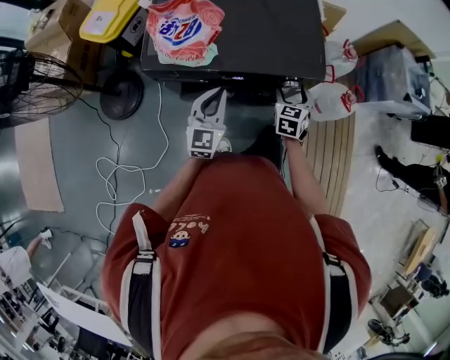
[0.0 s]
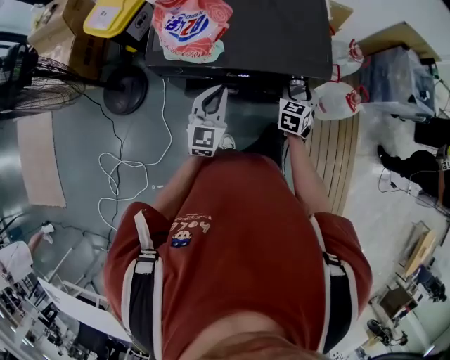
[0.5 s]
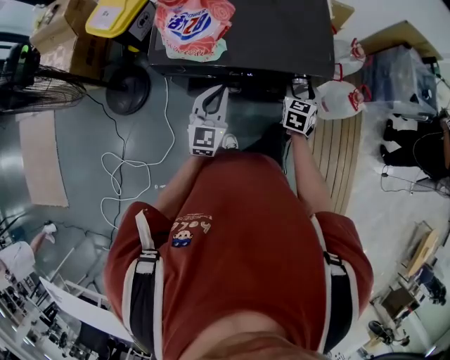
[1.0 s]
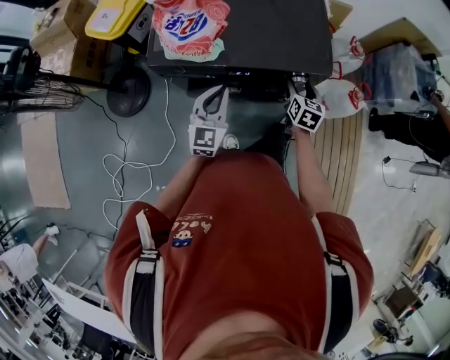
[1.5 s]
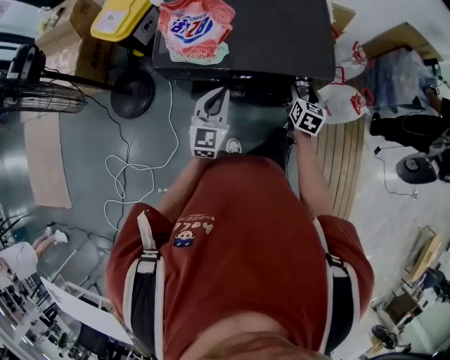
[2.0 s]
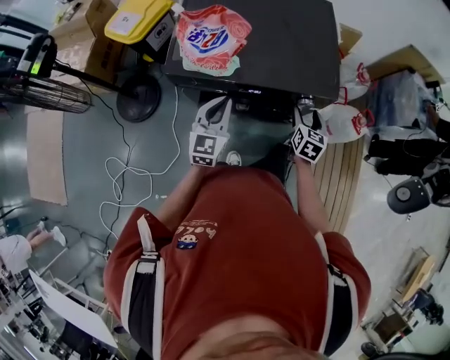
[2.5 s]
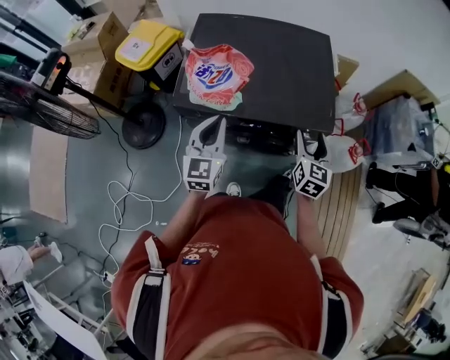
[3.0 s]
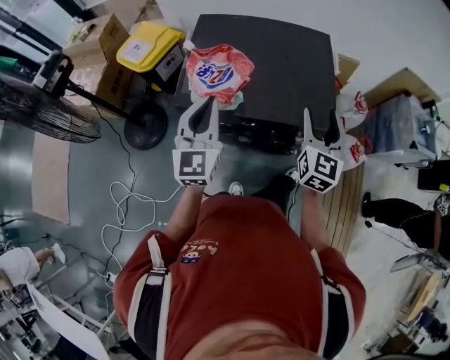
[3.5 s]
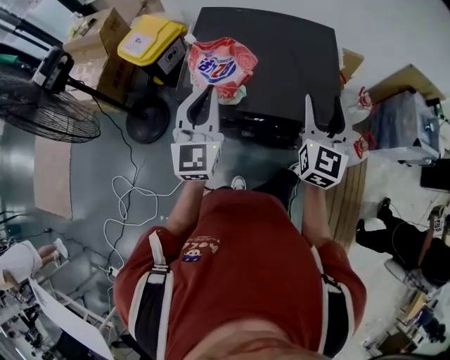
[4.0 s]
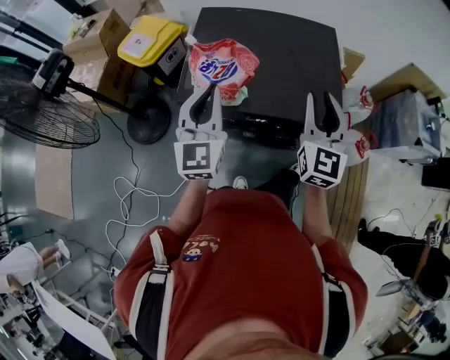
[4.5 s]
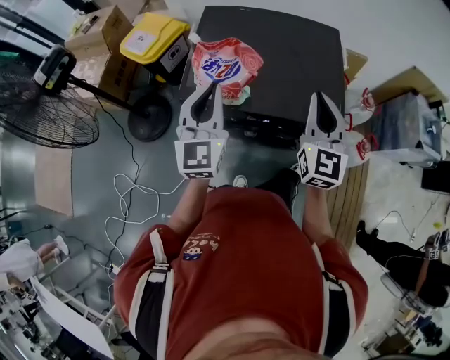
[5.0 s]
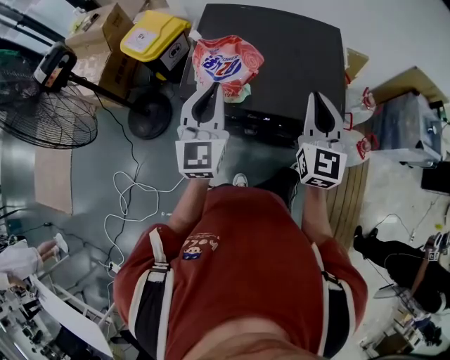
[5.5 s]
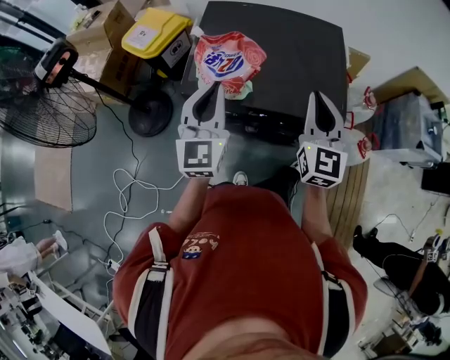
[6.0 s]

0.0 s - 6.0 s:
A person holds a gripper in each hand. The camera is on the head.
0.0 s - 2.0 s: The right gripper rotates about 20 degrees.
2.0 s - 4.0 s: The two grippers go some 25 cm upward. The right gripper angles its fingers upward, by approximately 30 degrees.
4.0 s - 6.0 s: The right gripper closes its fingers.

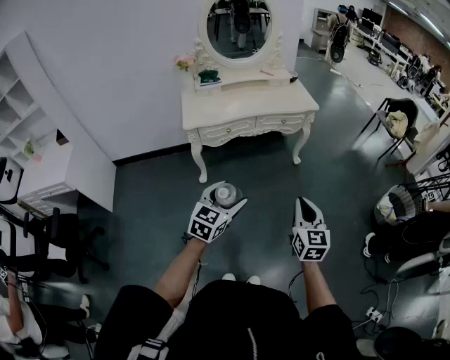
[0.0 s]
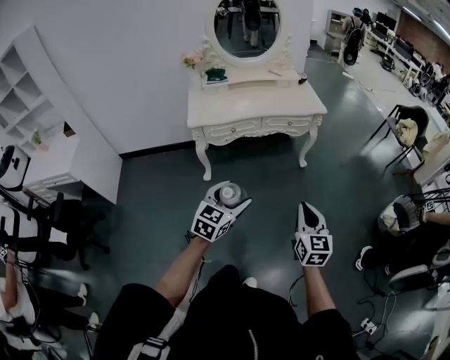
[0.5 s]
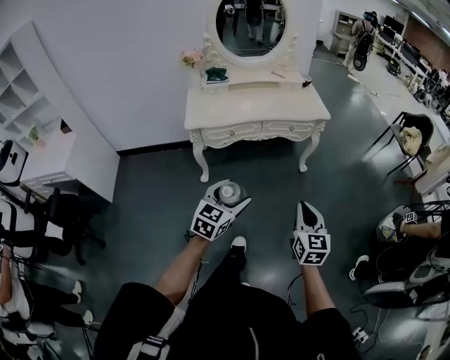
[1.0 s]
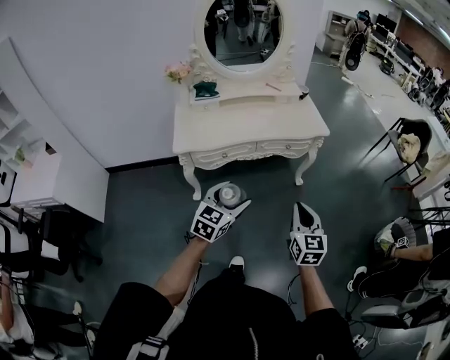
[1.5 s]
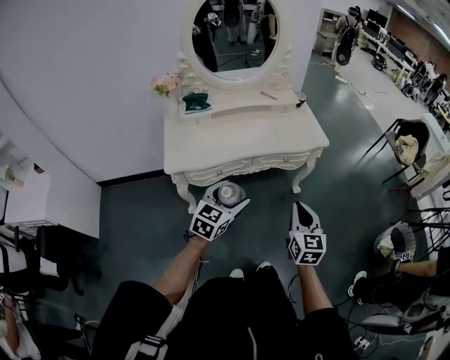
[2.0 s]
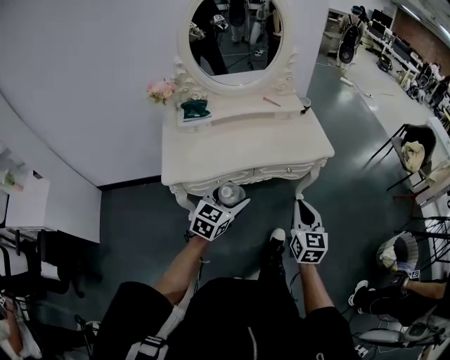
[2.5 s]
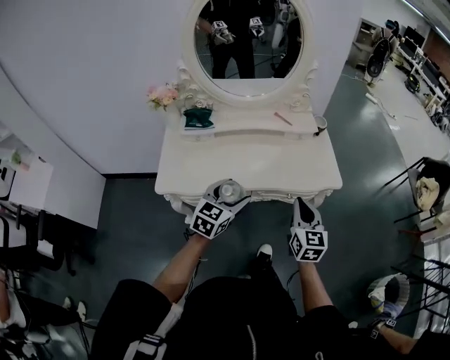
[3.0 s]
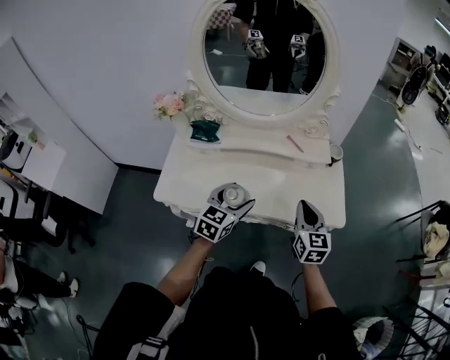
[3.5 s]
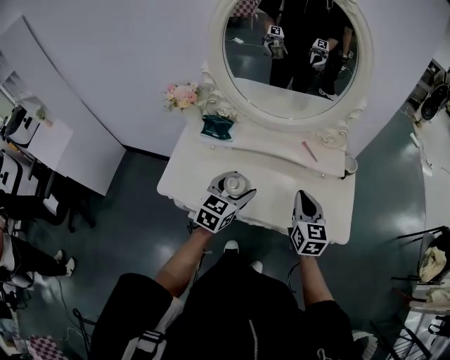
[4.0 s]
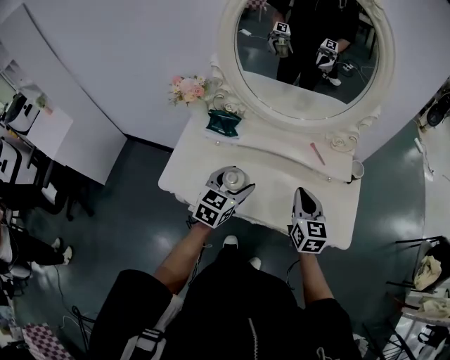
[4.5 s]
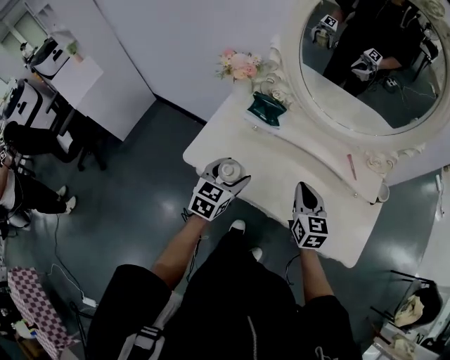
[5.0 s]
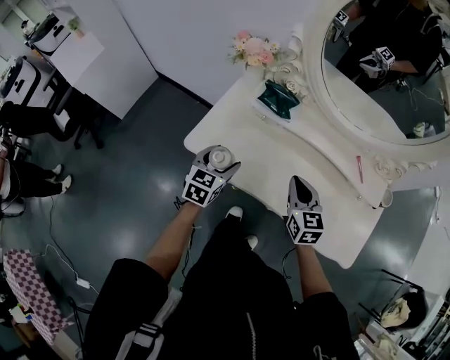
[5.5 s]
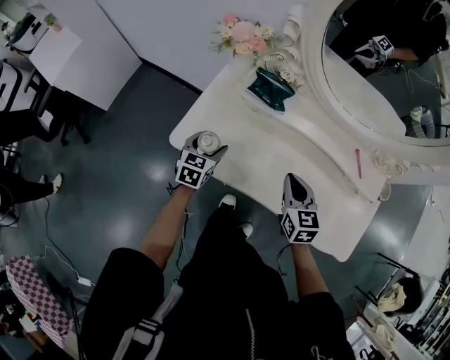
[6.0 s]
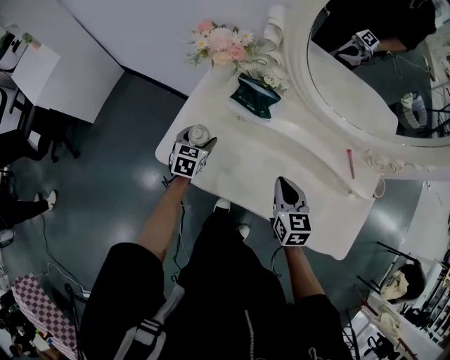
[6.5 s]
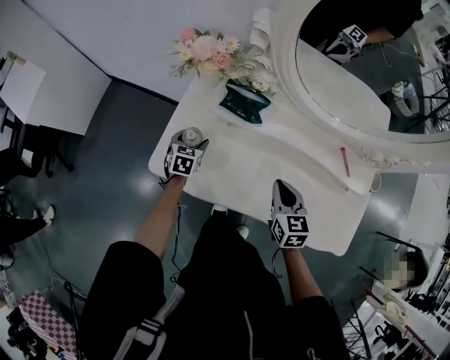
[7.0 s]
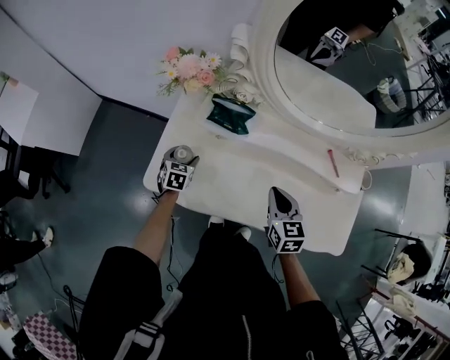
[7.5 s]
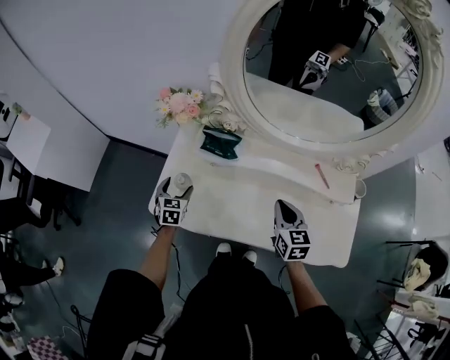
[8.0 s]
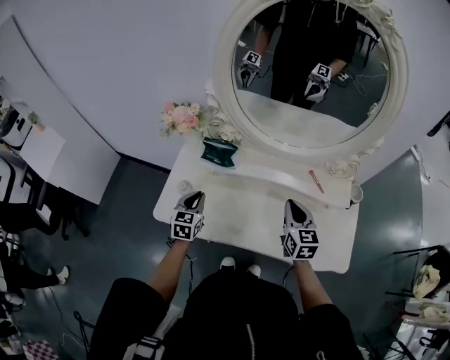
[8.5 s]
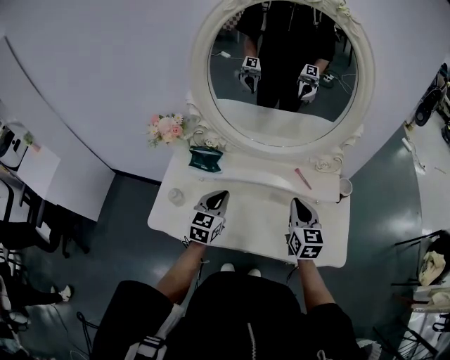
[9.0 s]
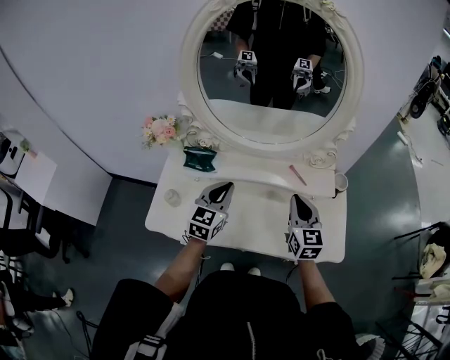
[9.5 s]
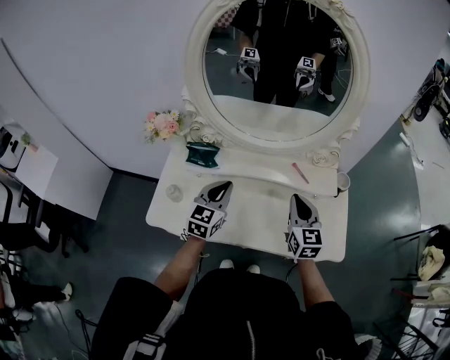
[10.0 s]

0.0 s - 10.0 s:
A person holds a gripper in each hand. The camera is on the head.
0.0 s - 2.0 s: Both grippers move forward, approximately 35 cm.
2.0 s - 4.0 s: The right gripper changes place by approximately 50 cm, and turns by approximately 30 degrees; the left gripper shifts by roughly 40 cm, and turns by roughly 30 degrees.
4.0 s - 6.0 s: The left gripper goes about 30 cm to the left and downward, and turns by roughly 30 degrees, while the right gripper moves to the left, downward and forward, some 25 cm, and changes its angle by about 30 degrees.
6.0 s - 8.0 s: The left gripper goes approximately 5 cm forward, while the right gripper goes some 10 cm to the right.
8.0 s - 10.0 s: The left gripper shifts roughly 35 cm to the right and upward, changes its angle by roughly 40 degrees, and closes up; the right gripper travels to the right and upward by approximately 15 cm.

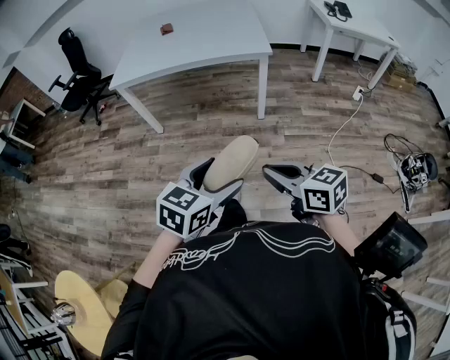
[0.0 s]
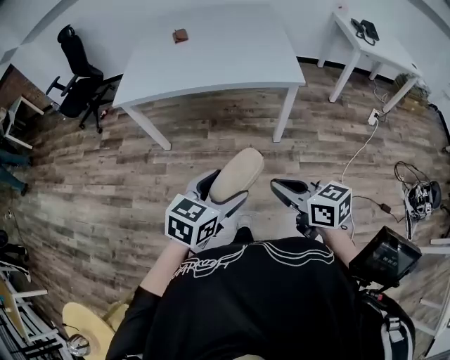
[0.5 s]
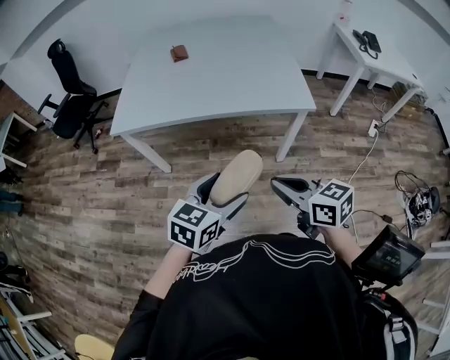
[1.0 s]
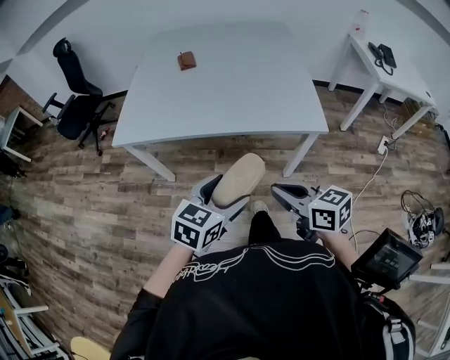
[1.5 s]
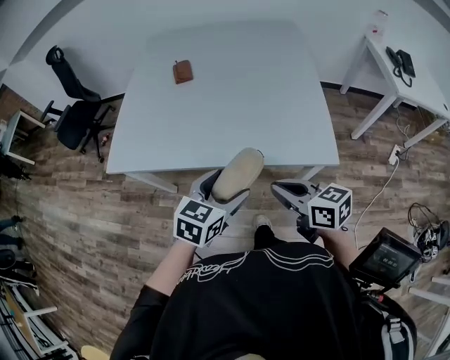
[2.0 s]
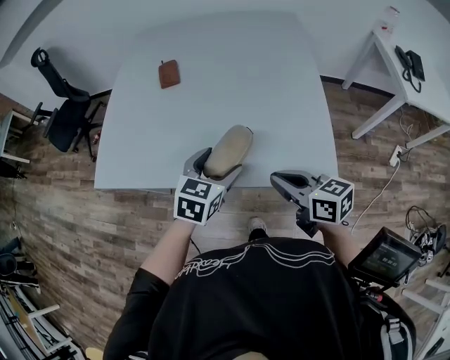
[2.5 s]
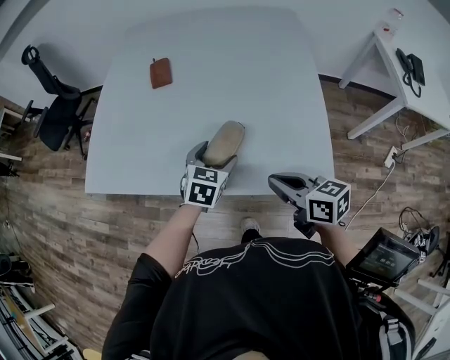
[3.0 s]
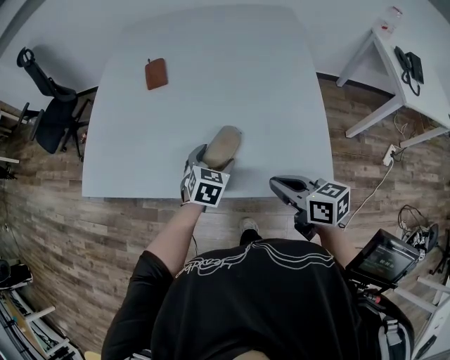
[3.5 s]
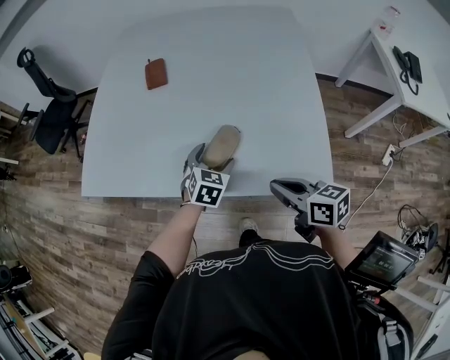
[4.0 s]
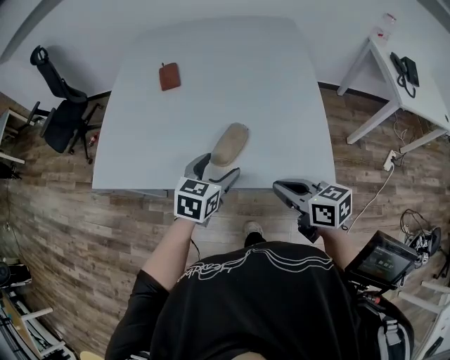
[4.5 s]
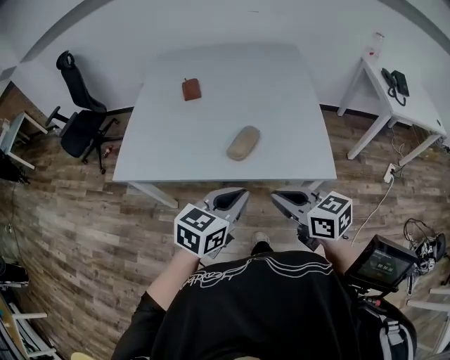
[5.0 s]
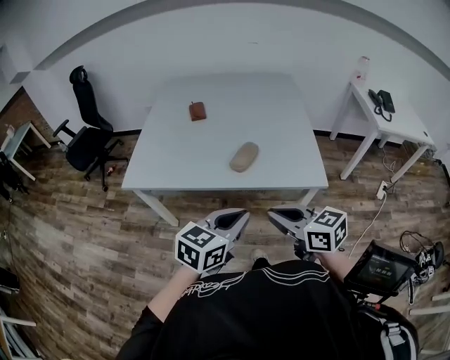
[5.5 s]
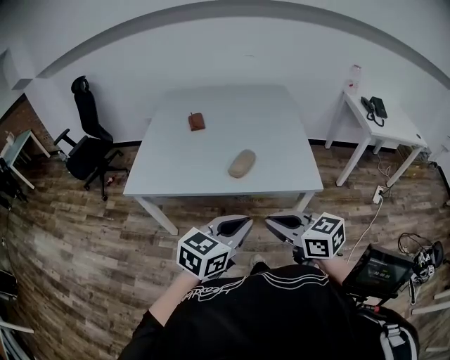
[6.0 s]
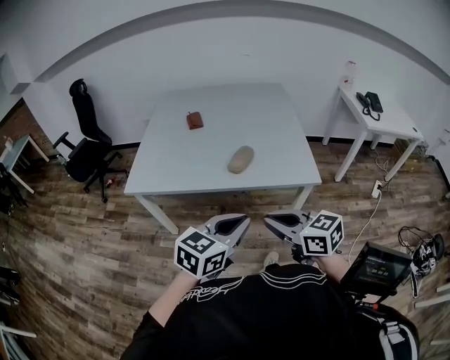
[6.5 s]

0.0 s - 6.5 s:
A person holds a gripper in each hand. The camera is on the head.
0.0 s - 2.0 s: The two grippers travel together, forward, roughly 60 cm.
2.0 s - 4.5 s: The left gripper heads forward, covering approximately 5 cm.
4.5 s - 6.5 s: The right gripper goes about 30 cm backward, upward and to the left; the left gripper heads backward and upward, covering roughly 35 cm, changes its angle by roughly 20 degrees, and closes its fingers.

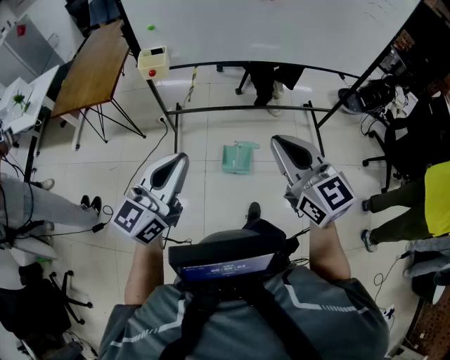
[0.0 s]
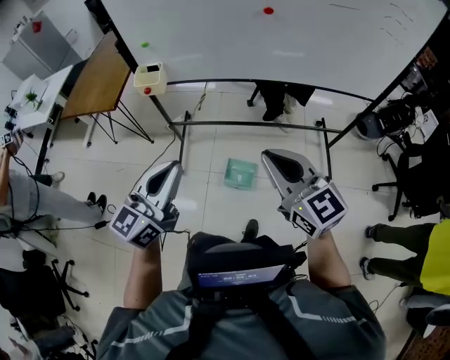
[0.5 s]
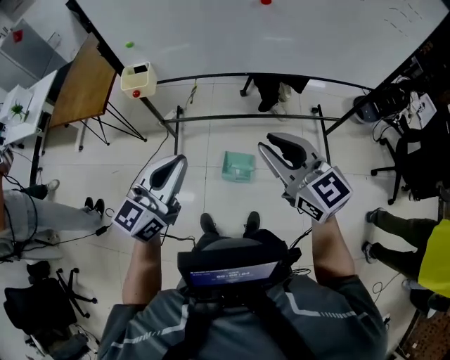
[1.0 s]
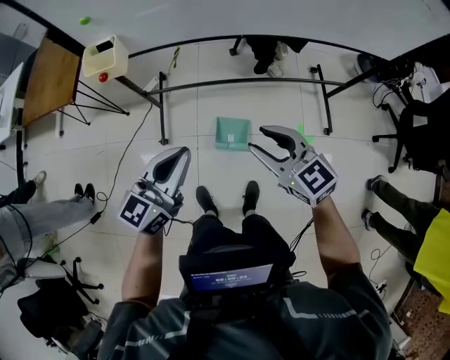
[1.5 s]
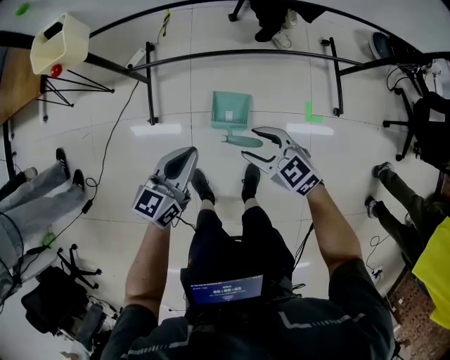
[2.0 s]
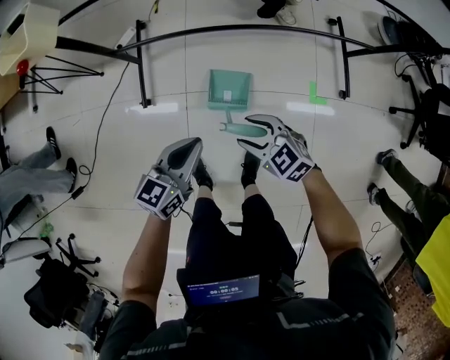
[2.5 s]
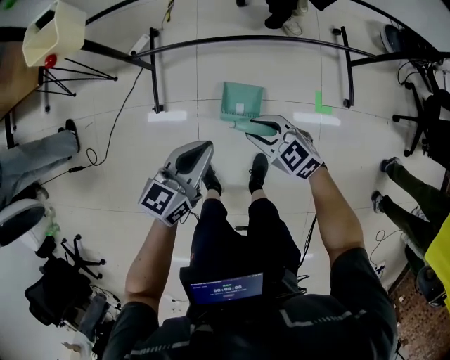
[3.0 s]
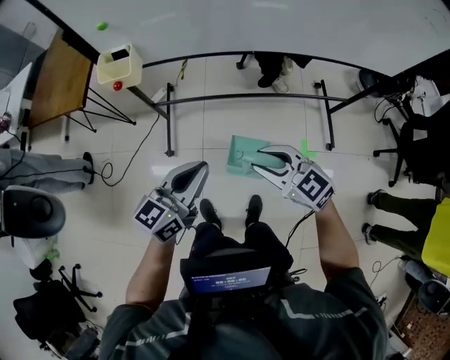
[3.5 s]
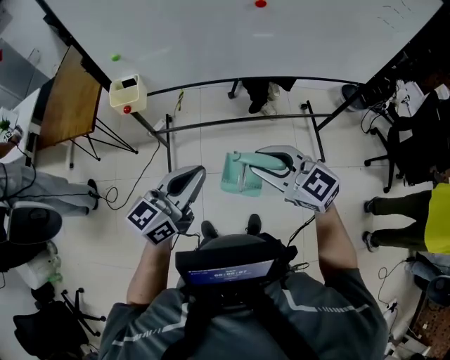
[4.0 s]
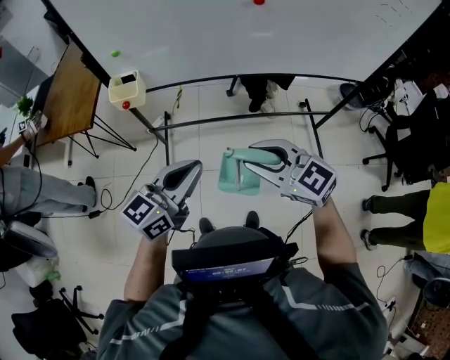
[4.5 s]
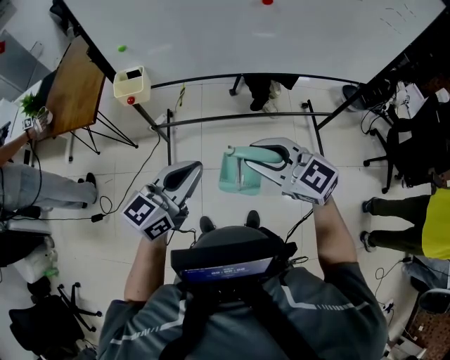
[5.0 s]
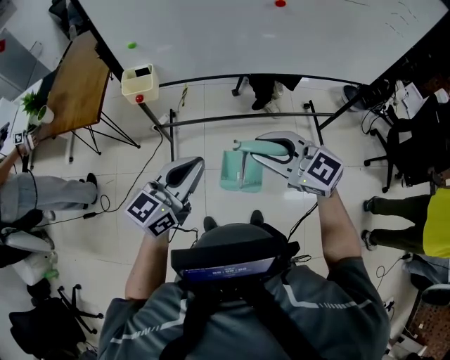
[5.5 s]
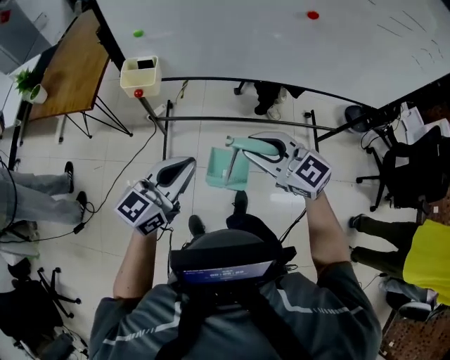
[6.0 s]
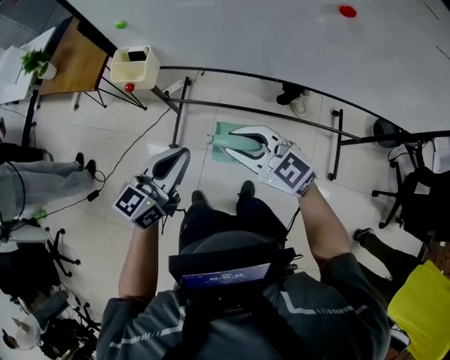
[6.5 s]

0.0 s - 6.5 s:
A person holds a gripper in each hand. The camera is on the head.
0.0 s - 2.0 s: The two grippers go approximately 50 cm downward and forward. The right gripper tips its fingers downward by about 30 degrees, and opens its fingers. The left gripper turns by approximately 30 degrees.
2.0 s - 4.5 s: Both grippers move upward, about 40 cm. The right gripper changes its angle by roughly 20 degrees, and closes.
4.5 s - 6.5 s: Both grippers move forward and downward, roughly 20 cm. The left gripper rotates roughly 20 degrees.
